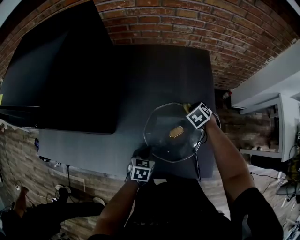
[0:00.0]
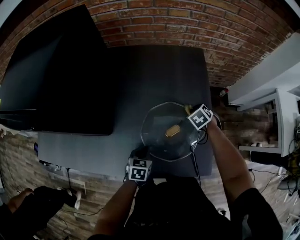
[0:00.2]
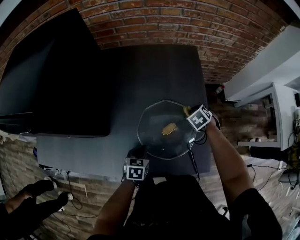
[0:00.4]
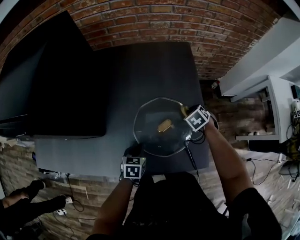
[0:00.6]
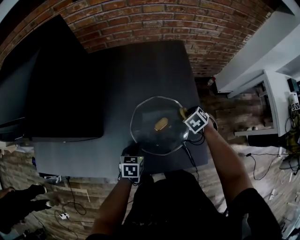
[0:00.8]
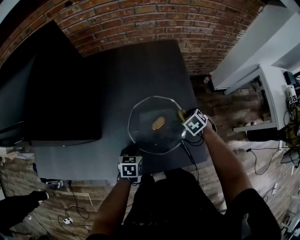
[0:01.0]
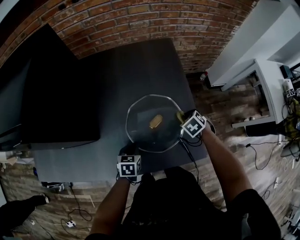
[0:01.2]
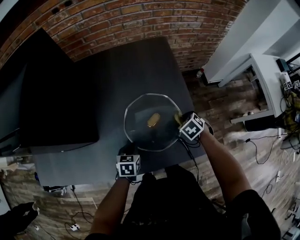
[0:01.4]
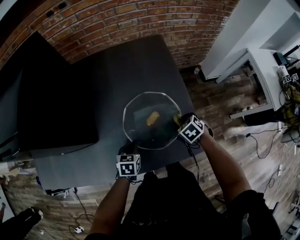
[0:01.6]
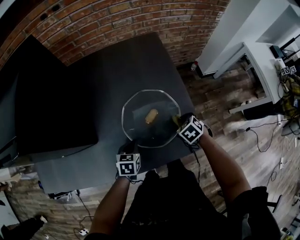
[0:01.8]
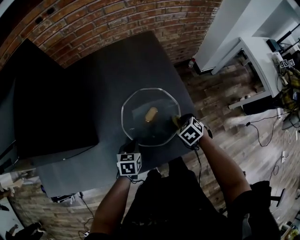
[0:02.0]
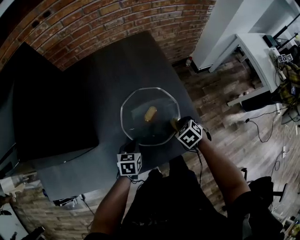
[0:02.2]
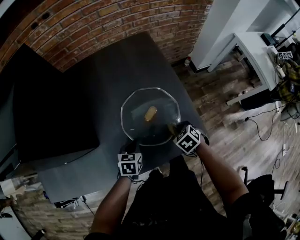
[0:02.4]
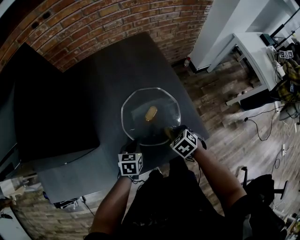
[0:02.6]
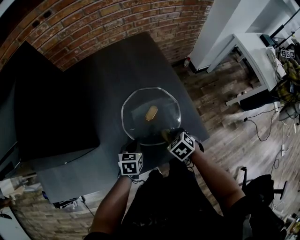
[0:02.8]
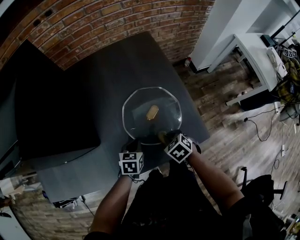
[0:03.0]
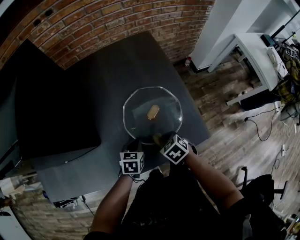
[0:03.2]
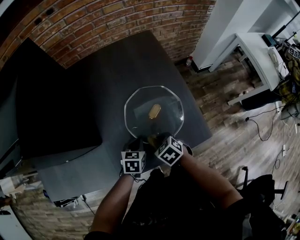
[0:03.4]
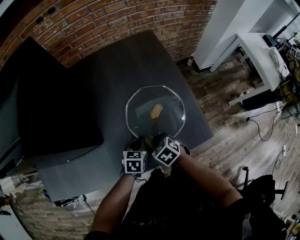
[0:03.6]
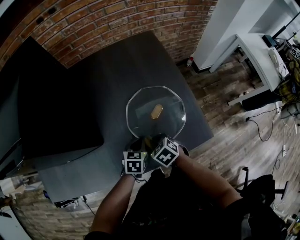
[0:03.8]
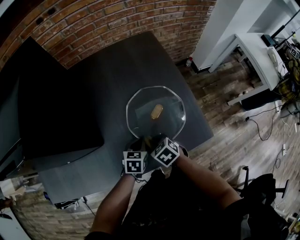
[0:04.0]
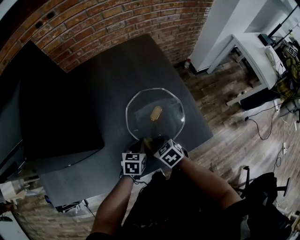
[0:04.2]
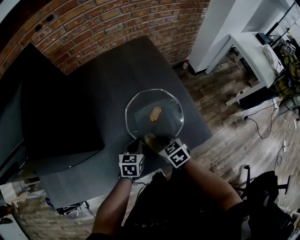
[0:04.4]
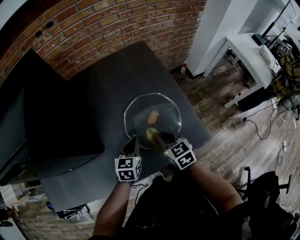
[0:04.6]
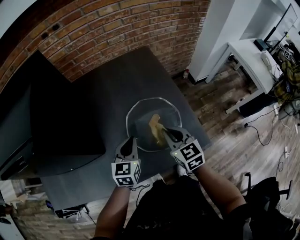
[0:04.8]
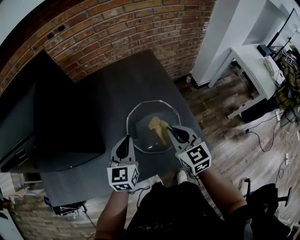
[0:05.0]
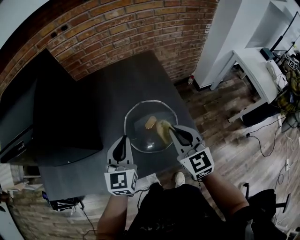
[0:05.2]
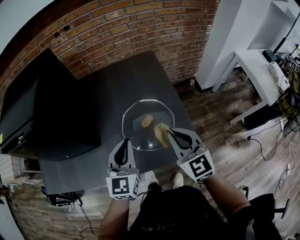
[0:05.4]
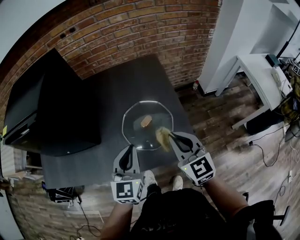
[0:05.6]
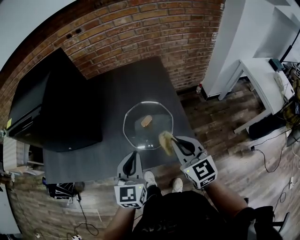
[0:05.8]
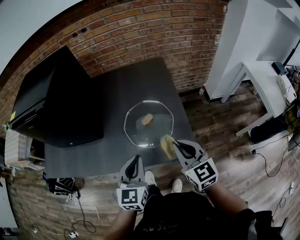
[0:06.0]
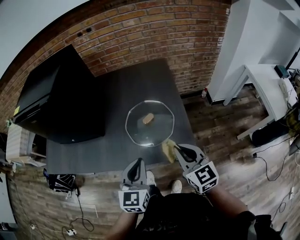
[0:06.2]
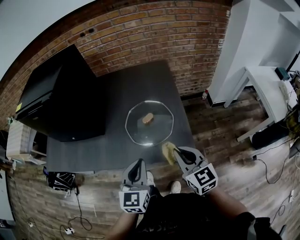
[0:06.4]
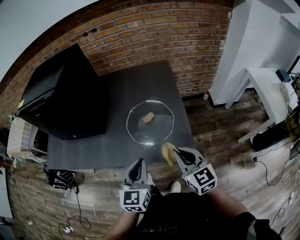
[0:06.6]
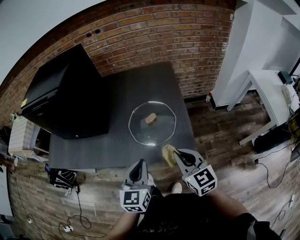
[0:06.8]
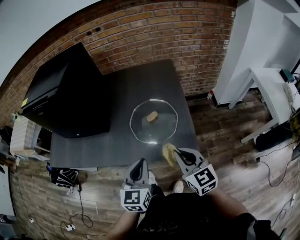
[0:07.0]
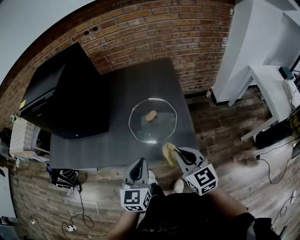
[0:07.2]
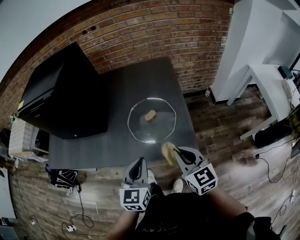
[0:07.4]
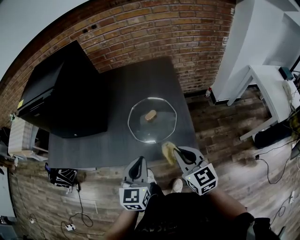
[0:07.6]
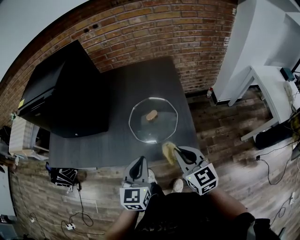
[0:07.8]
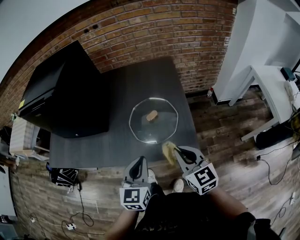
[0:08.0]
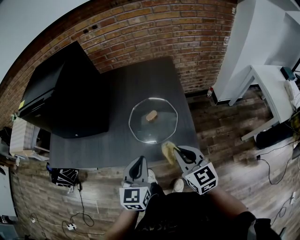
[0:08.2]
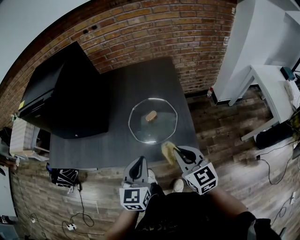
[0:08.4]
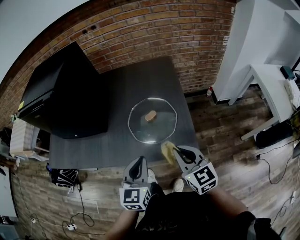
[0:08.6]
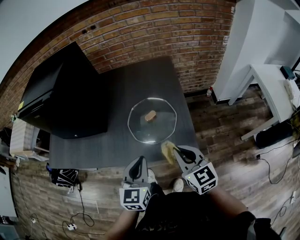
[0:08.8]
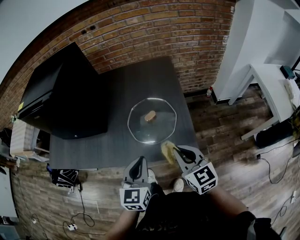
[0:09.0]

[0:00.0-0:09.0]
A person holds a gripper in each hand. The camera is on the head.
0:00.0 to 0:01.6: The right gripper goes roughly 15 cm backward and to the right.
0:01.6 to 0:03.0: The right gripper travels backward and to the left by roughly 15 cm.
0:03.0 to 0:04.4: The right gripper is displaced to the left by about 10 cm, and swivels roughly 20 degrees.
0:04.4 to 0:06.0: The right gripper is displaced upward, to the right and backward by approximately 30 cm, and points its fingers approximately 30 degrees further upward, while the left gripper goes about 25 cm upward and backward, and changes its angle by roughly 40 degrees.
0:06.0 to 0:07.6: The grippers move only a little.
0:07.6 to 0:09.0: Neither gripper changes place.

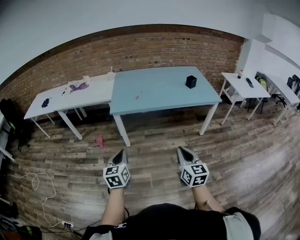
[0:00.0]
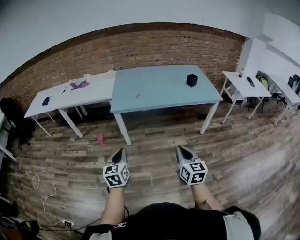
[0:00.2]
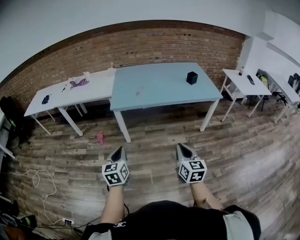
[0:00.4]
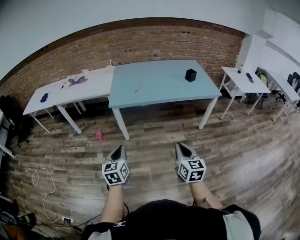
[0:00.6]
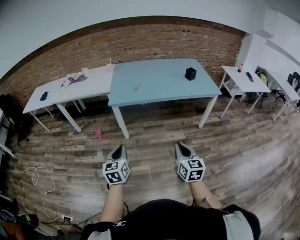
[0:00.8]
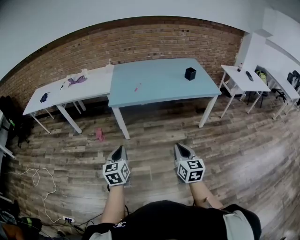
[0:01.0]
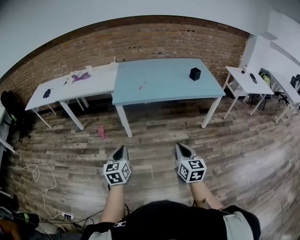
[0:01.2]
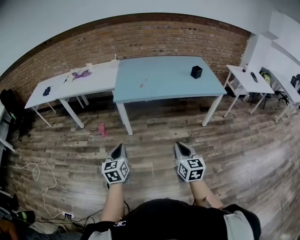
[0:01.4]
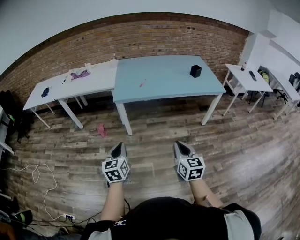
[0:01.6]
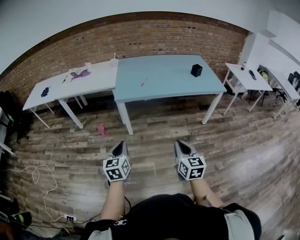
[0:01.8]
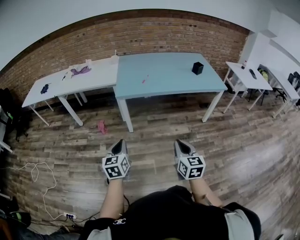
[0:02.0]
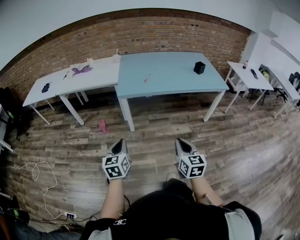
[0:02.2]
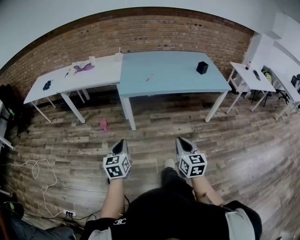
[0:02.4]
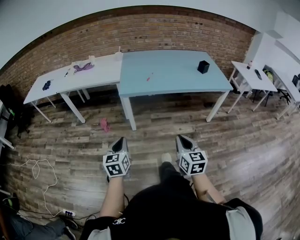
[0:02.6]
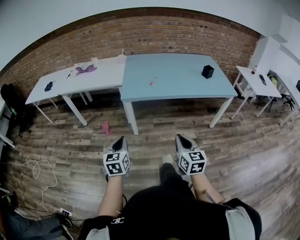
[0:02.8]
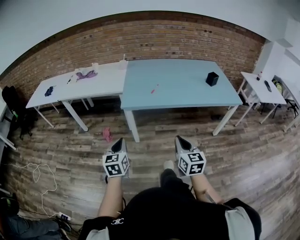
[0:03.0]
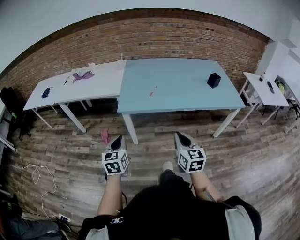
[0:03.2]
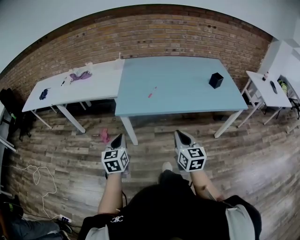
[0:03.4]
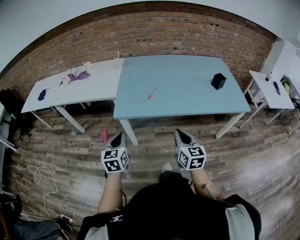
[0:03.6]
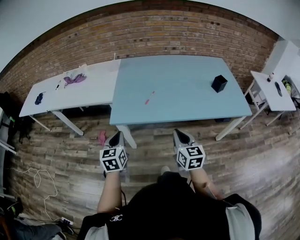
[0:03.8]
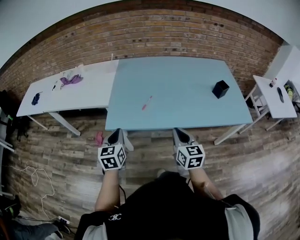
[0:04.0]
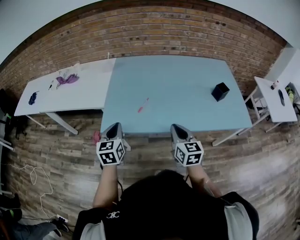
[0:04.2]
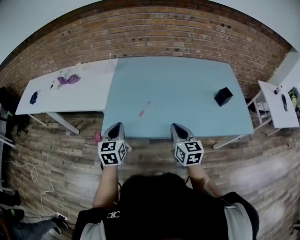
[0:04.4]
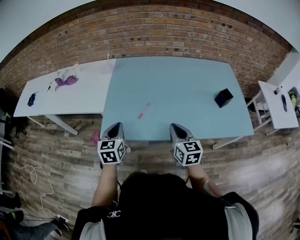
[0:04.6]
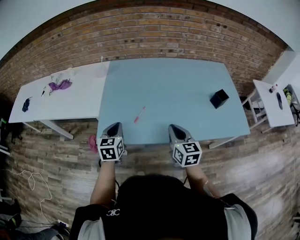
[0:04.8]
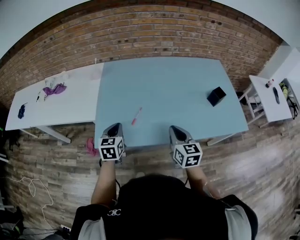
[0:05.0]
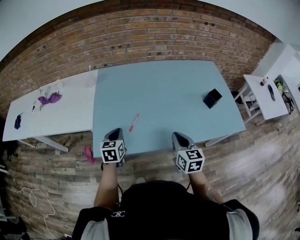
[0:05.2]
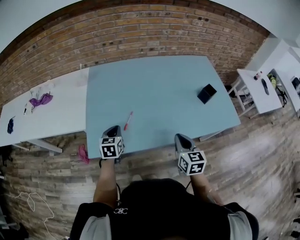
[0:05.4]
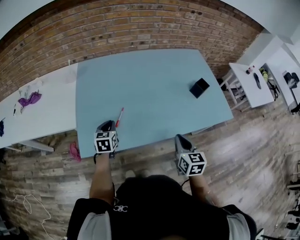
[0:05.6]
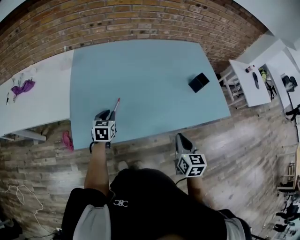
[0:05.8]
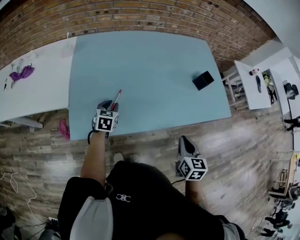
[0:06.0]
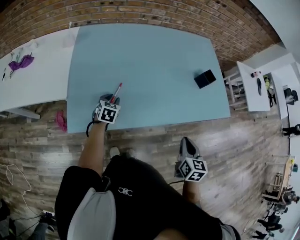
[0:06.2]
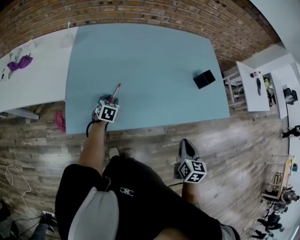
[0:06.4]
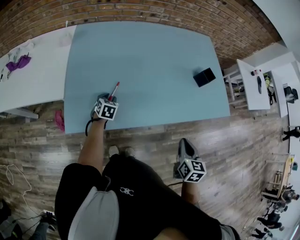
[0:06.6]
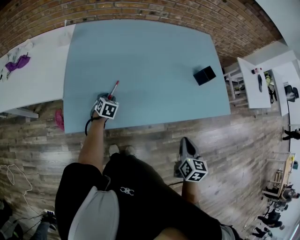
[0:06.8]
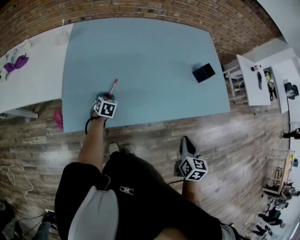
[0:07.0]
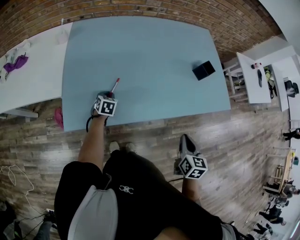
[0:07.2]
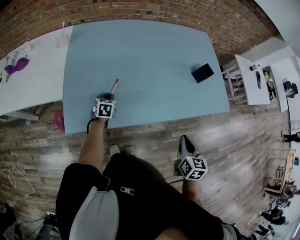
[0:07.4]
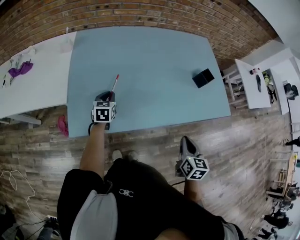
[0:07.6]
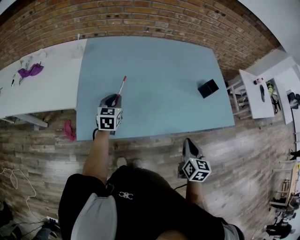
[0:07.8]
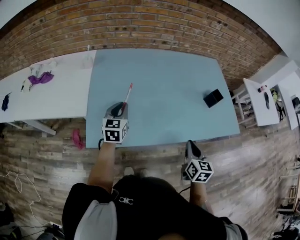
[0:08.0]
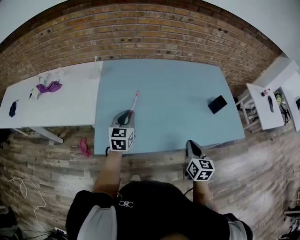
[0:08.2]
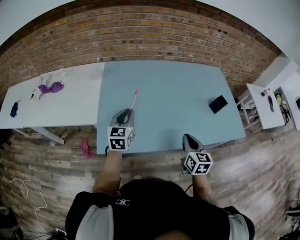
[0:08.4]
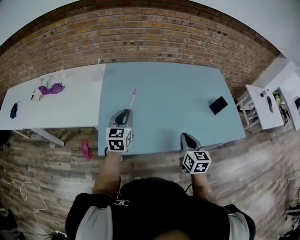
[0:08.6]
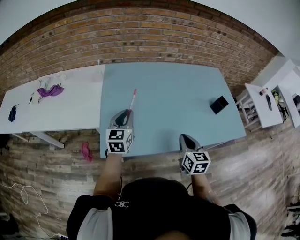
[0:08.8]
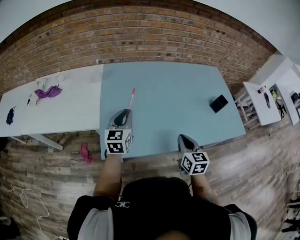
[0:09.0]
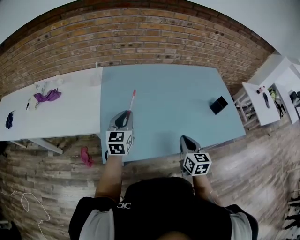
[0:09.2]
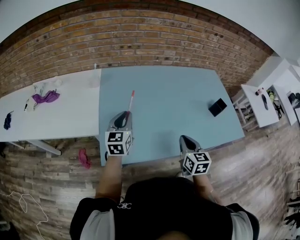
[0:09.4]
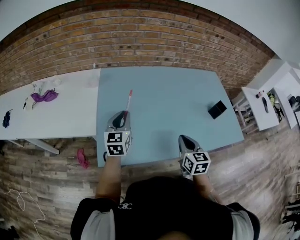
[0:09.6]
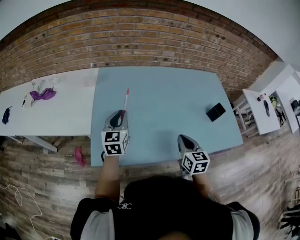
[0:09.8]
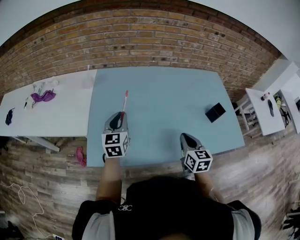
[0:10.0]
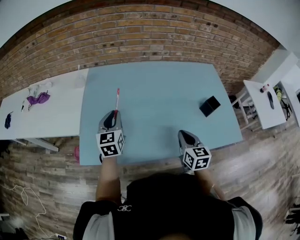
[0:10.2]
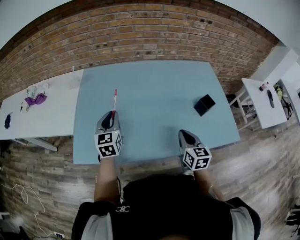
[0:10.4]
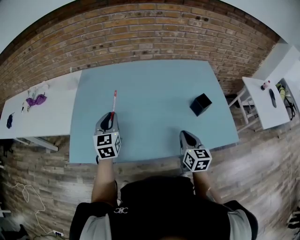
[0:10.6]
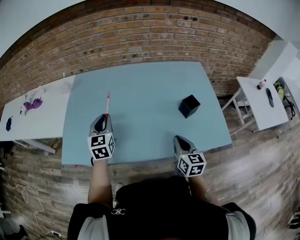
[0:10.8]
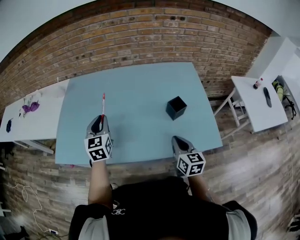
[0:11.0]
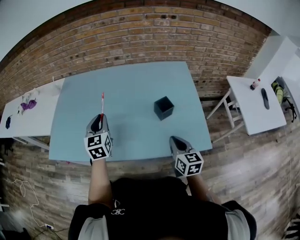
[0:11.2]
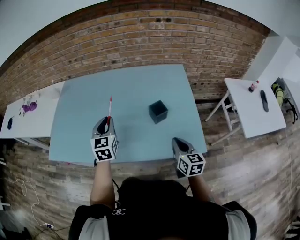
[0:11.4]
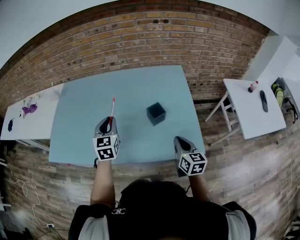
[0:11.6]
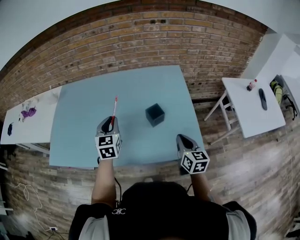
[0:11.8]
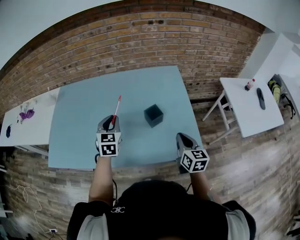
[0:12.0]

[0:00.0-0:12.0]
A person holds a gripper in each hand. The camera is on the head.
0:00.0 to 0:01.6: The right gripper is displaced to the left by some 5 cm.
0:01.6 to 0:03.0: Both grippers travel together forward, about 15 cm.
0:03.0 to 0:04.4: The right gripper shifts roughly 35 cm forward. Meanwhile the left gripper heads forward and to the right, covering some 35 cm.
0:04.4 to 0:06.0: The right gripper ends up some 15 cm from where it was, and turns by roughly 30 degrees. Meanwhile the left gripper ends up roughly 25 cm from where it was, rotates about 30 degrees, and opens its fingers.
0:06.0 to 0:07.6: The left gripper reaches approximately 10 cm downward, then returns.
0:07.6 to 0:09.0: The left gripper moves upward and to the left, about 20 cm, and swivels about 20 degrees; the right gripper moves to the left and forward, some 20 cm.
0:09.0 to 0:10.4: The left gripper goes some 10 cm to the right, while the right gripper travels to the right by roughly 20 cm.
0:10.4 to 0:12.0: The grippers both shift to the right by approximately 35 cm.

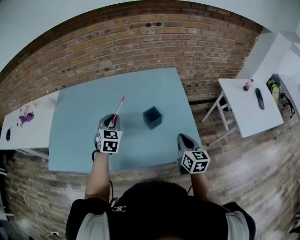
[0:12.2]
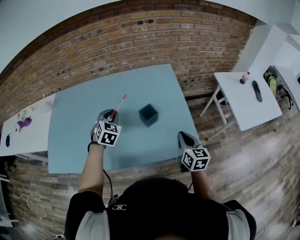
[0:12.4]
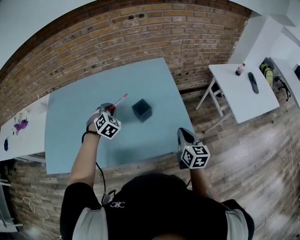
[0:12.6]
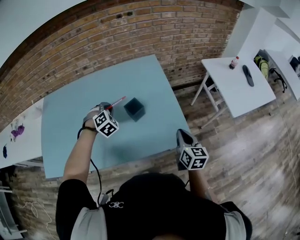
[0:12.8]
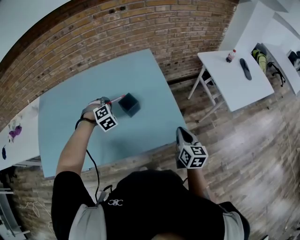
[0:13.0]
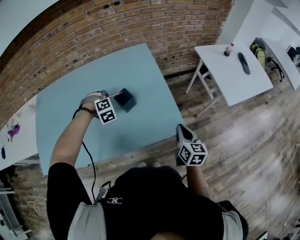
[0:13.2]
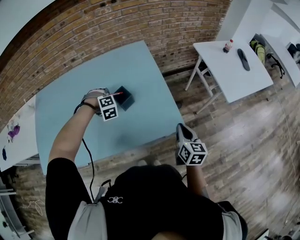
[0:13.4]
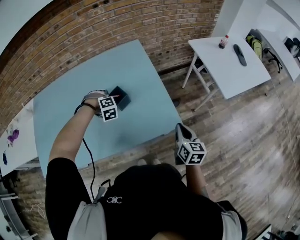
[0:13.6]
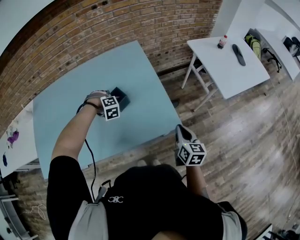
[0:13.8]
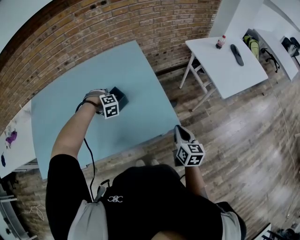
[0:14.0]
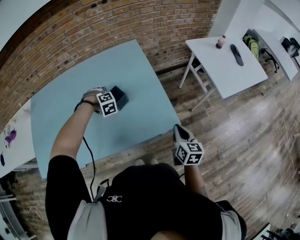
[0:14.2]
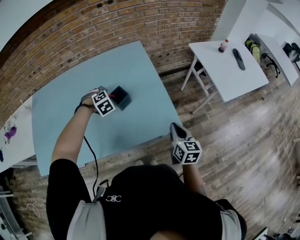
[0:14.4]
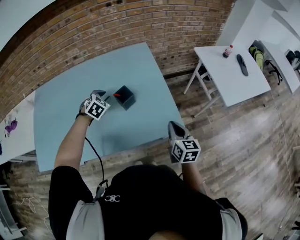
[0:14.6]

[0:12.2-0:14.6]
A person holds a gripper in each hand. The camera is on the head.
0:12.2 to 0:13.4: The left gripper travels to the right, downward and forward by some 15 cm, and rotates around the line of its fingers by roughly 70 degrees, clockwise from behind. The right gripper shifts roughly 15 cm to the right and backward.
0:13.4 to 0:14.6: The left gripper rotates around the line of its fingers by some 40 degrees, counterclockwise from behind.
